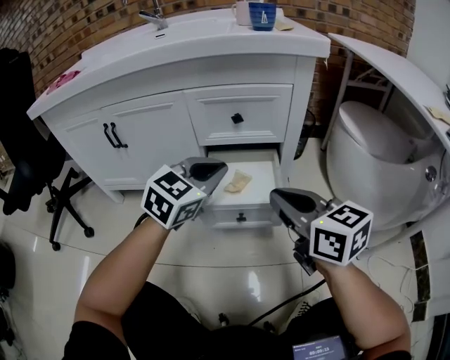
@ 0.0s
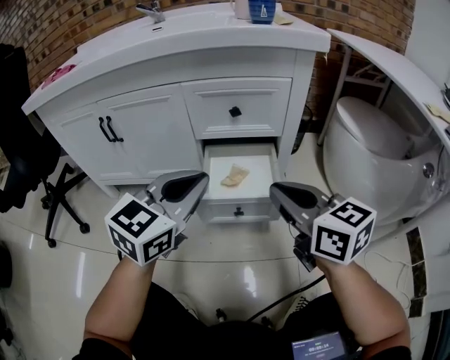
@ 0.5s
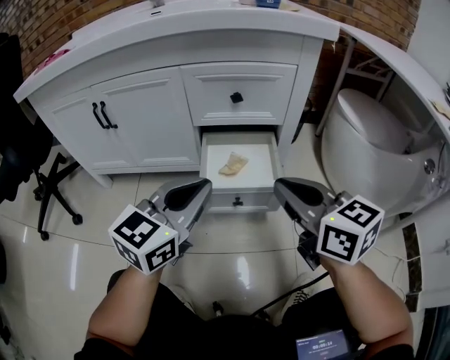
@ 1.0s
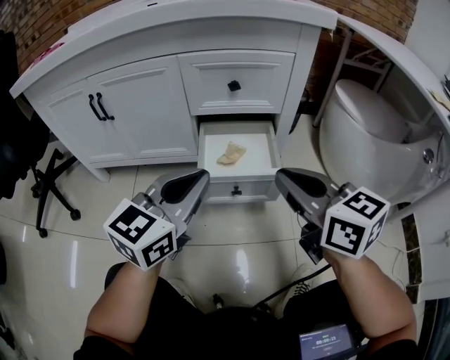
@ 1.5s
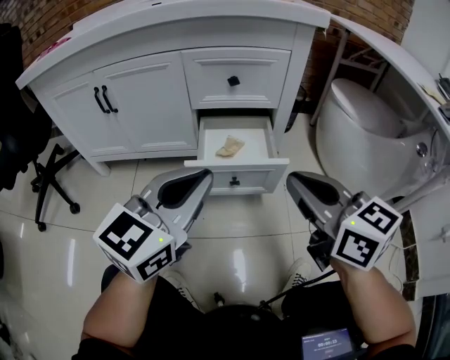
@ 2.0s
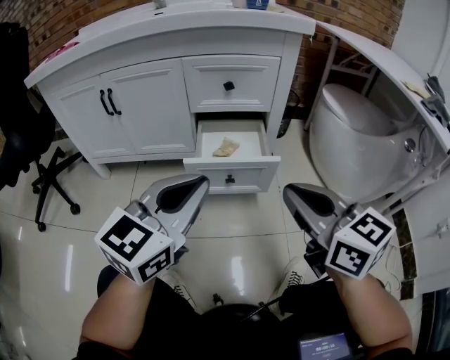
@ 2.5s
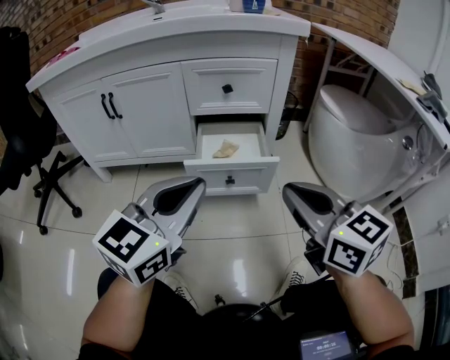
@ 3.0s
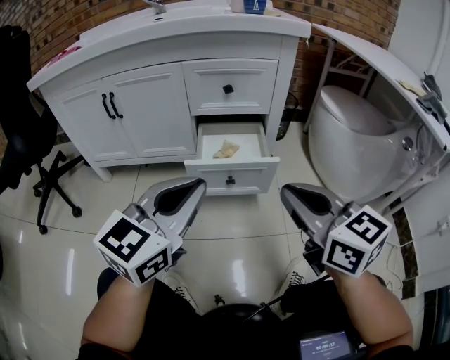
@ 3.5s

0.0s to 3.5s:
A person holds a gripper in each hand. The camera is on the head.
0.0s to 2.0s: The left gripper travels backward by some 15 cm, and turns by roughly 20 degrees. Meanwhile the right gripper shifts some 10 cm backward.
2.0s to 3.5s: The two grippers go roughly 5 cm backward.

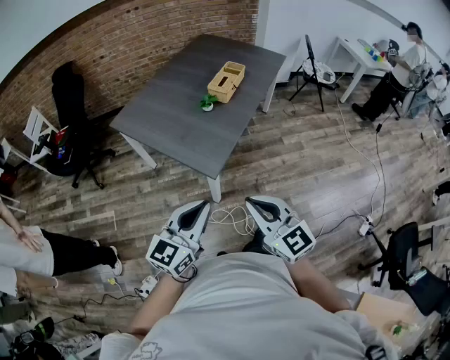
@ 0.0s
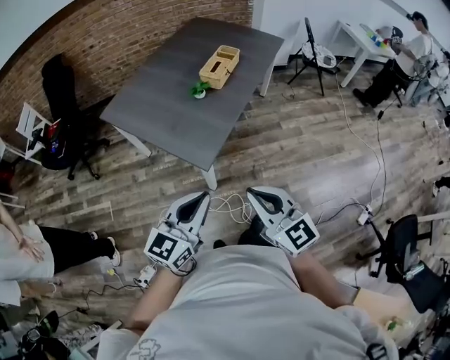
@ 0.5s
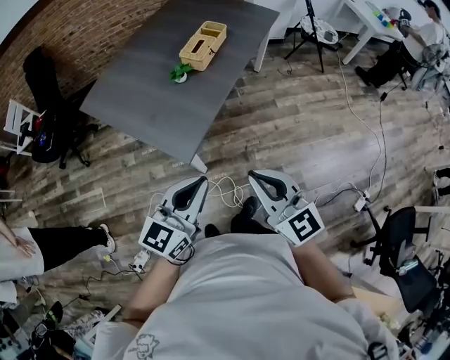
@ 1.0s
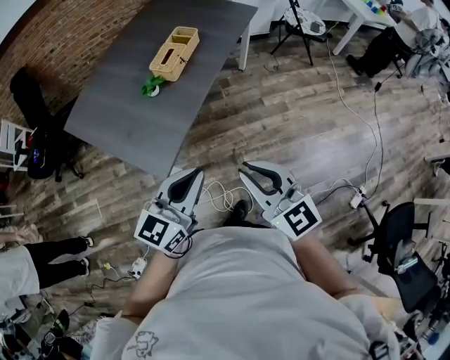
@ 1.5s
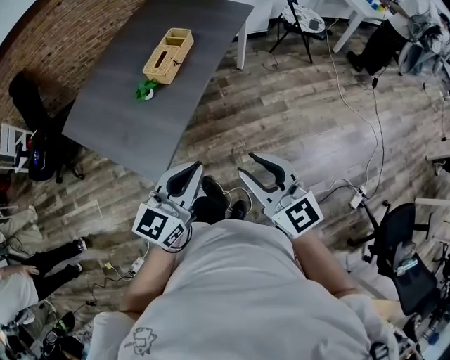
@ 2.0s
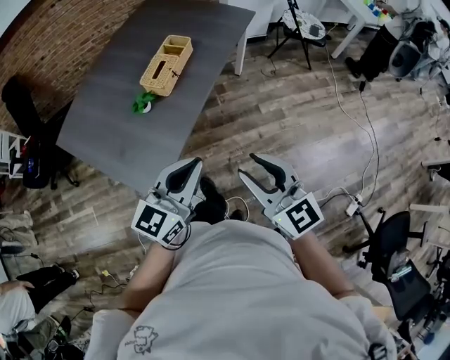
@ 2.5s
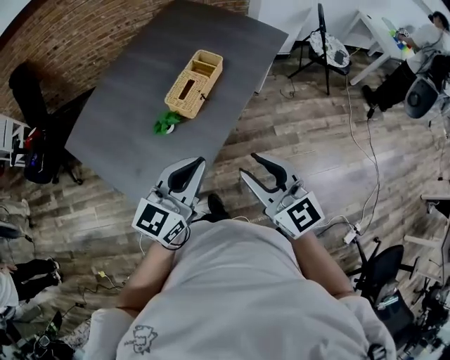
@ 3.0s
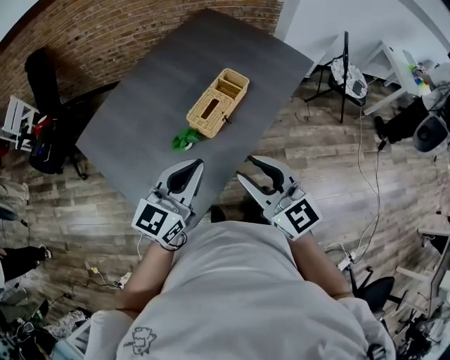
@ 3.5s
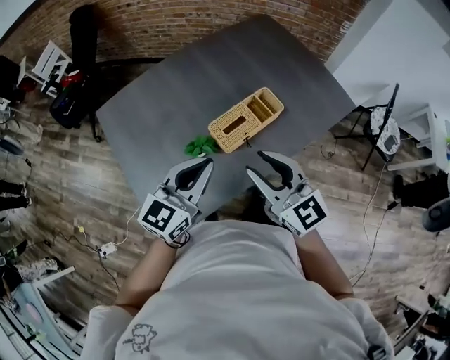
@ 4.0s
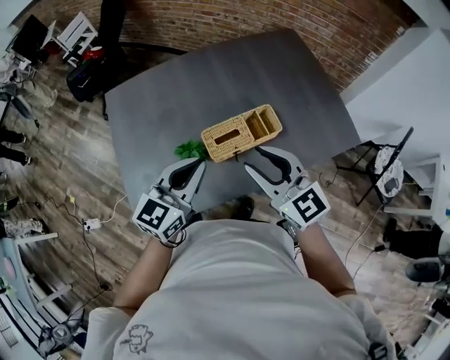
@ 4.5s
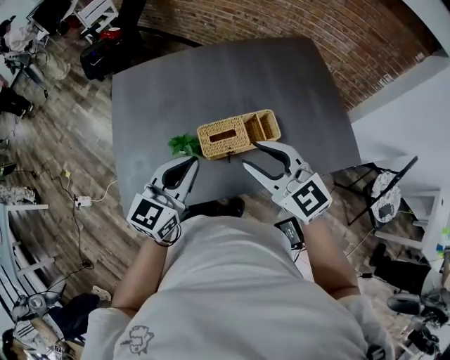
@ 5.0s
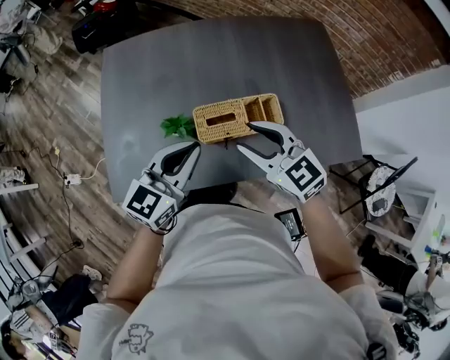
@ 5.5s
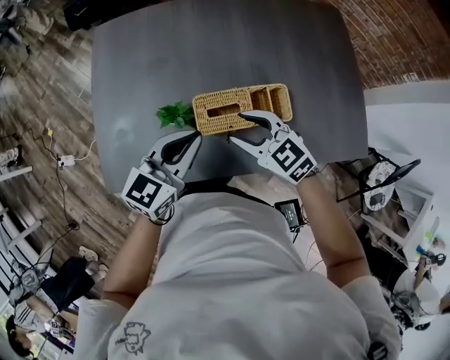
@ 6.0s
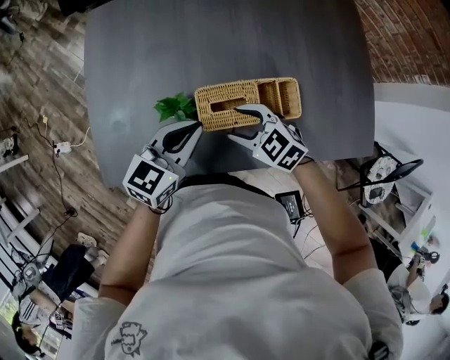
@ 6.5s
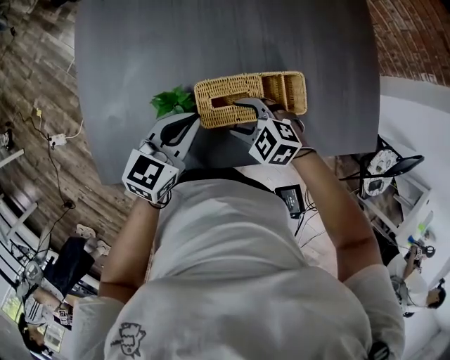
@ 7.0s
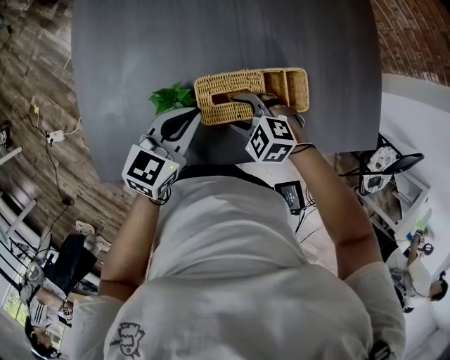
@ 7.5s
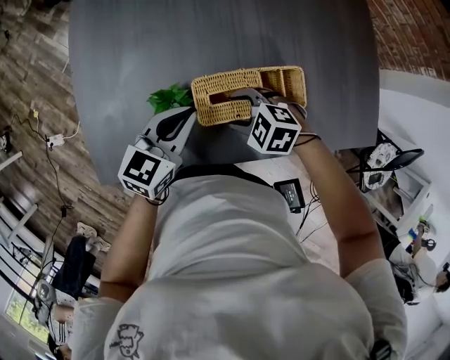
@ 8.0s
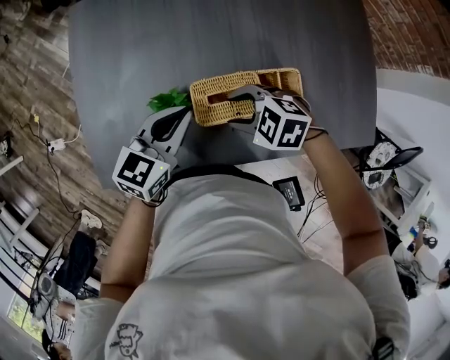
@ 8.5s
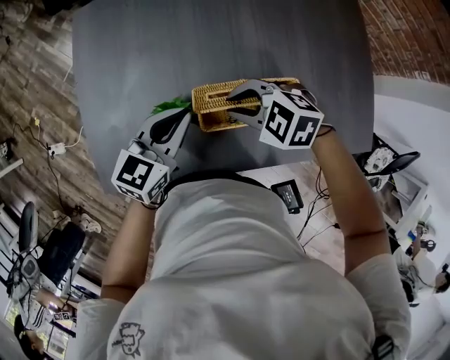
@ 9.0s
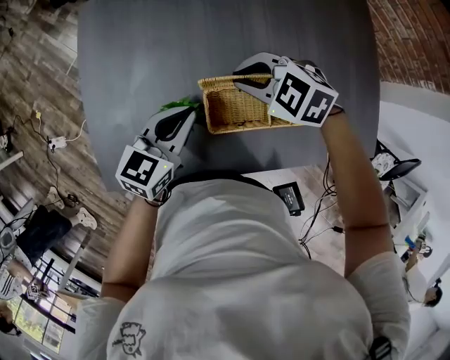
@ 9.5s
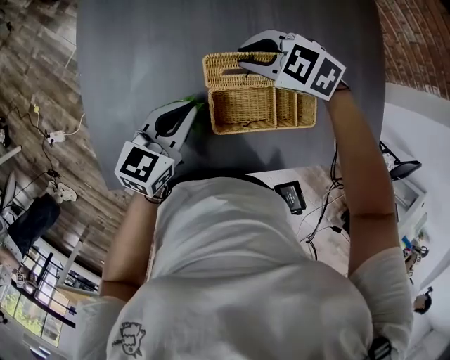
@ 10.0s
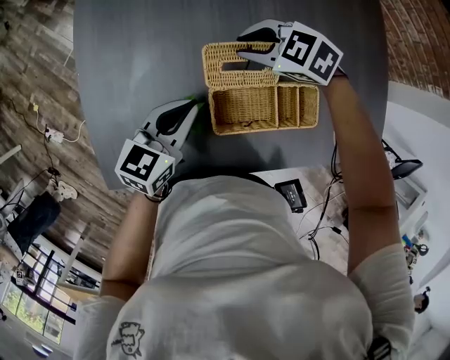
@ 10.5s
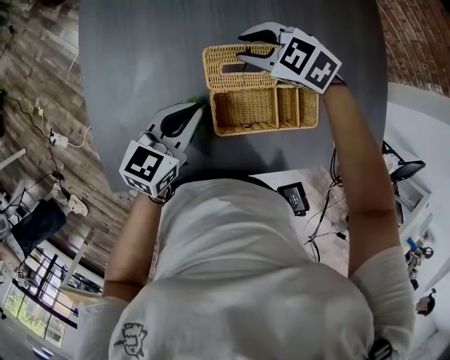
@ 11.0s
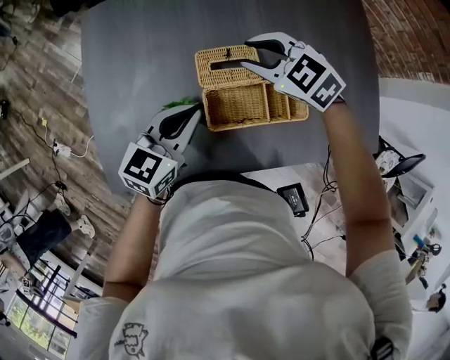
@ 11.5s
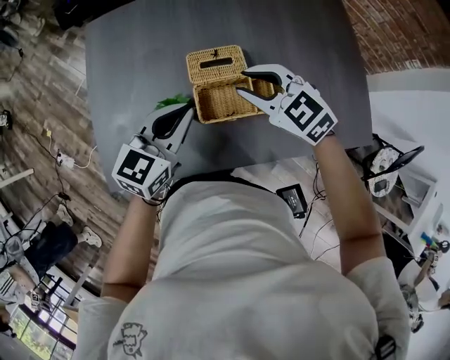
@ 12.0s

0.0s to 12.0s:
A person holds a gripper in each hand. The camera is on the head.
0.0s to 2.0s: Both grippers move to the right and forward, about 30 cm. The right gripper opens.
2.0s to 4.0s: The right gripper changes place by some 40 cm, and swivels approximately 30 degrees. The left gripper shifts by approximately 35 cm, and swivels approximately 30 degrees.
4.0s to 6.0s: The left gripper changes place by roughly 15 cm, and turns by some 30 degrees. The right gripper goes about 15 cm downward, and rotates about 50 degrees.
6.0s to 8.0s: Both grippers move downward, some 10 cm. The right gripper changes its angle by some 40 degrees.
8.0s to 10.0s: The left gripper ends up approximately 5 cm from where it was. Meanwhile the right gripper changes place by some 20 cm, and closes its fingers.
10.0s to 12.0s: The left gripper moves upward, approximately 10 cm. Meanwhile the right gripper shifts by approximately 15 cm, and turns by about 30 degrees.

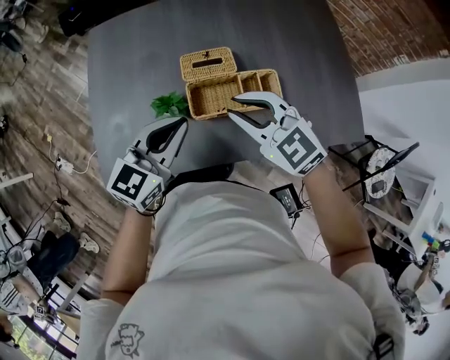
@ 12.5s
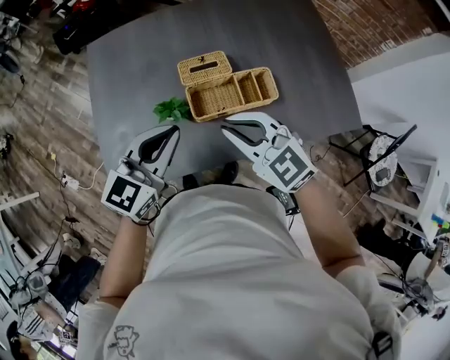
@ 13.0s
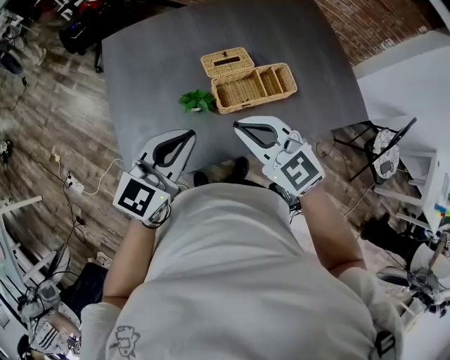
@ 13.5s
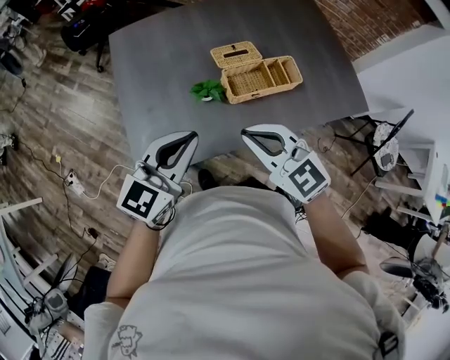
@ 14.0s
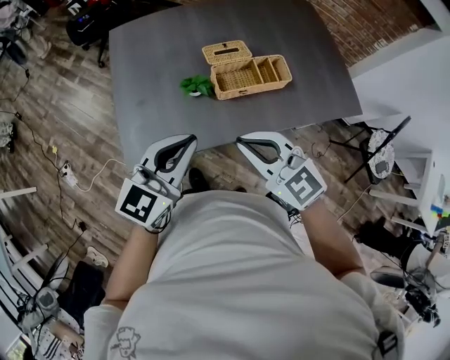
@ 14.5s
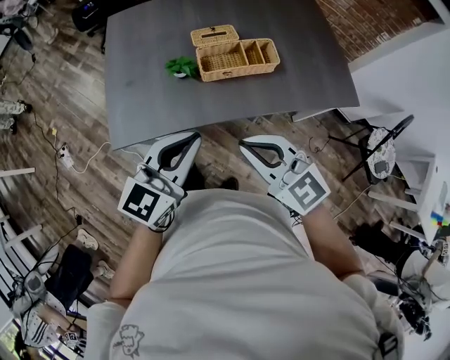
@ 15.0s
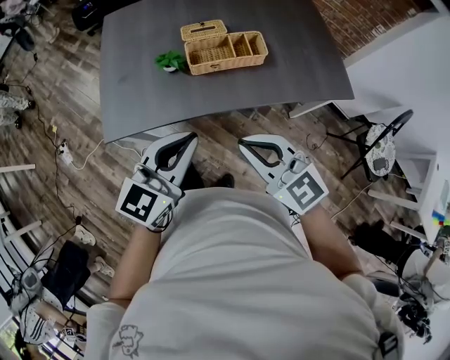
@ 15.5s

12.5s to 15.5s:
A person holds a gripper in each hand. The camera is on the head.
12.5s to 14.0s: The left gripper moves to the left, backward and upward, about 15 cm, while the right gripper goes about 20 cm backward and to the left.
14.0s to 15.5s: The right gripper heads backward and to the right, covering roughly 20 cm. The left gripper shifts some 20 cm to the right and backward.

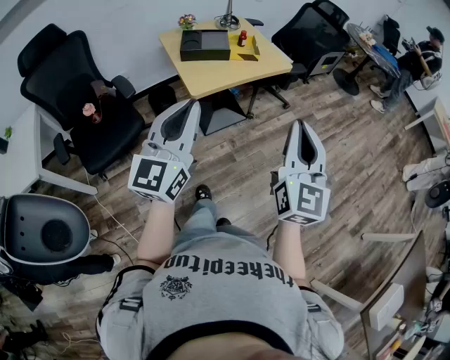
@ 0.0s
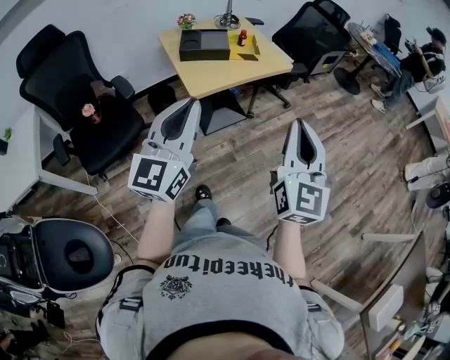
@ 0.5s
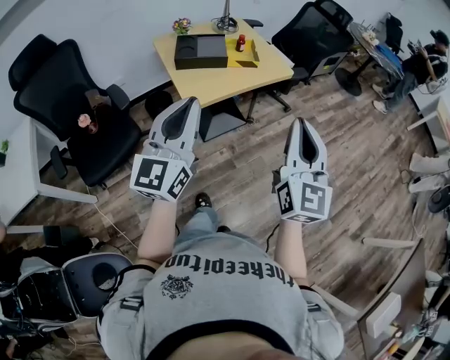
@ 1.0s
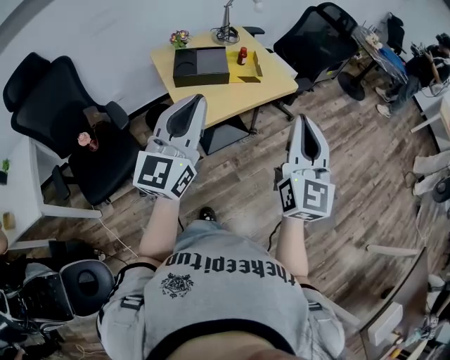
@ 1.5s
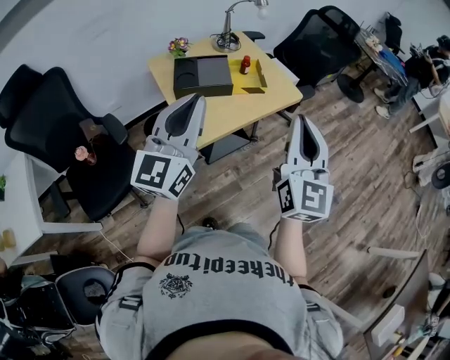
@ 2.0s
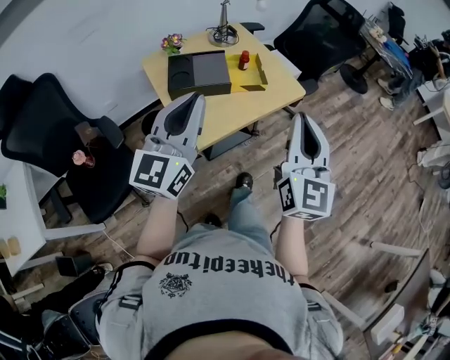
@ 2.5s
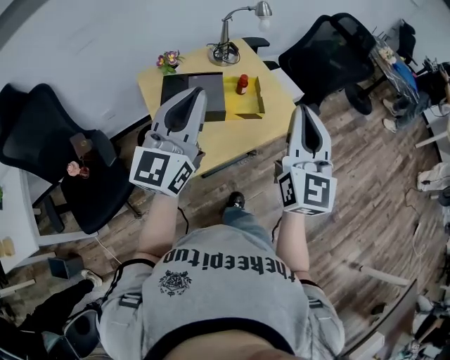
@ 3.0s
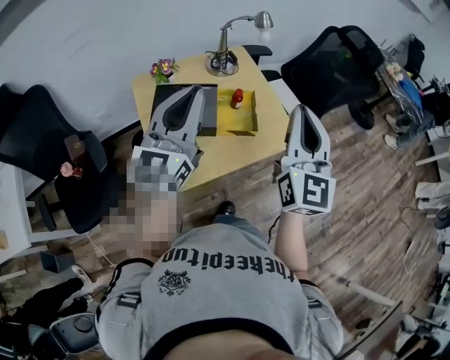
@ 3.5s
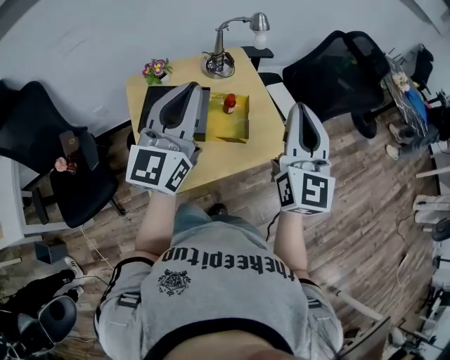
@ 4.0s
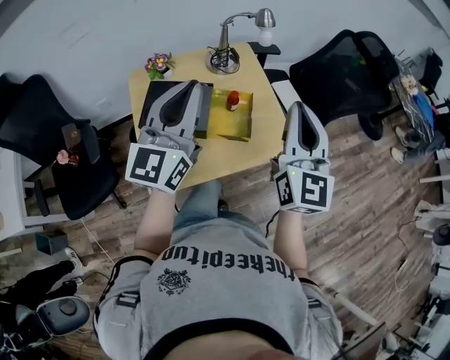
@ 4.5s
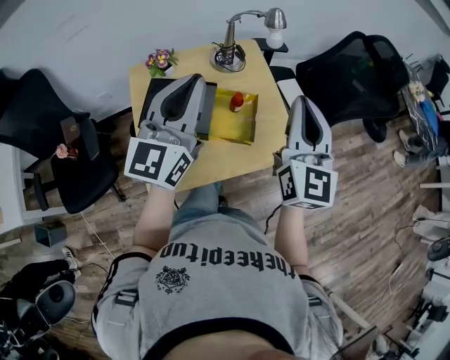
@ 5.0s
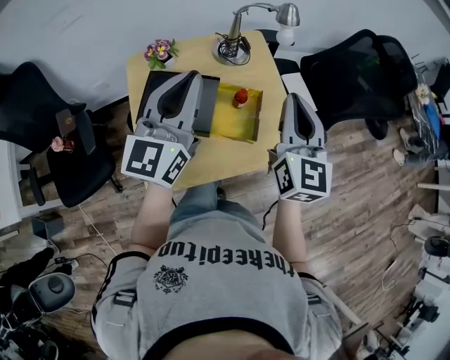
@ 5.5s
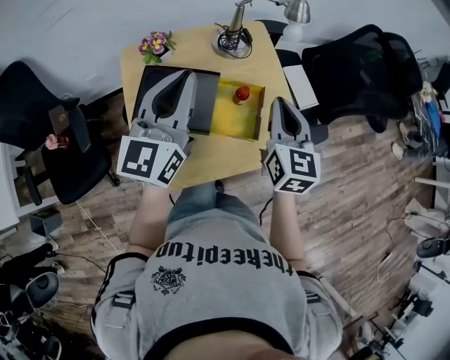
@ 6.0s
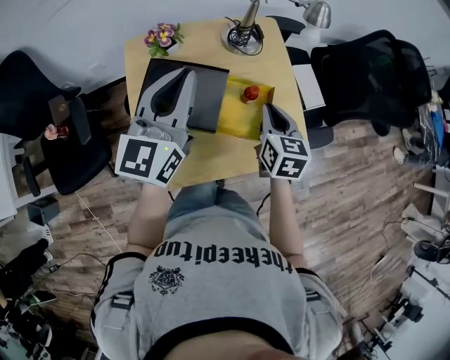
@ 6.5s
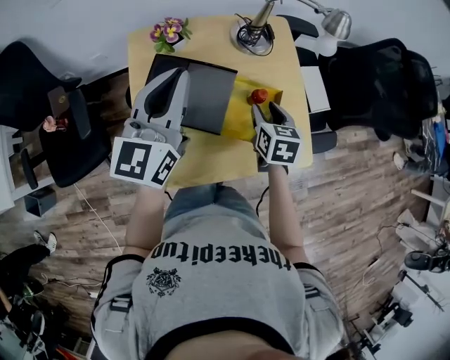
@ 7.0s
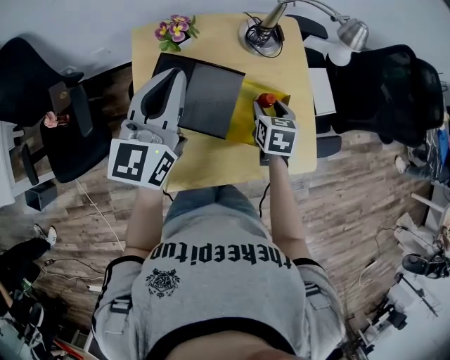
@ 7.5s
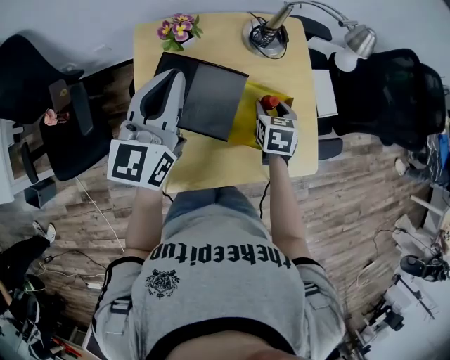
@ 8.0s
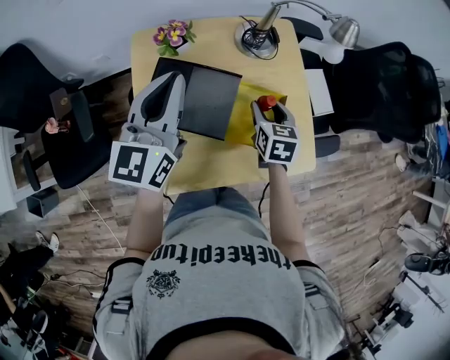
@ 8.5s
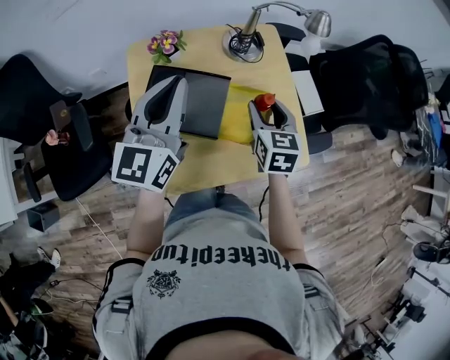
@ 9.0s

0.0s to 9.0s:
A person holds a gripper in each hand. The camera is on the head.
0.0s to 2.0s: Both grippers move forward, approximately 25 cm.
2.0s to 4.5s: Both grippers travel together forward, roughly 35 cm.
4.5s to 7.0s: The left gripper moves forward, to the left and downward, approximately 20 cm. The right gripper moves downward and forward, about 35 cm, angles its fingers downward, by some 50 degrees, and opens.
7.0s to 9.0s: The right gripper is displaced upward by about 5 cm.
